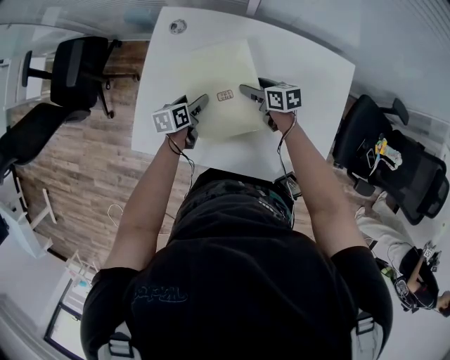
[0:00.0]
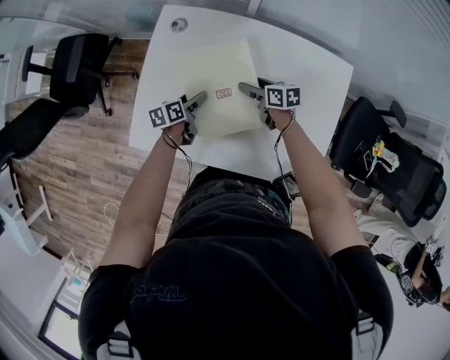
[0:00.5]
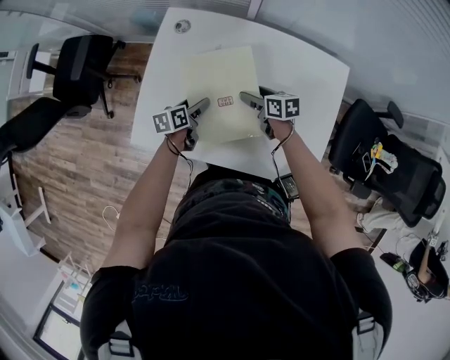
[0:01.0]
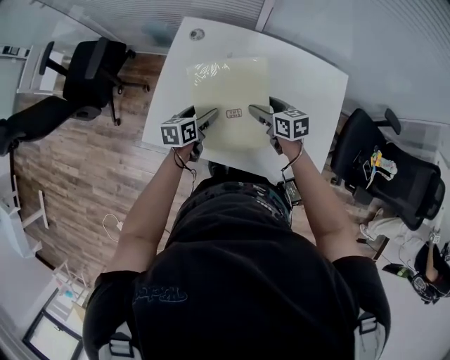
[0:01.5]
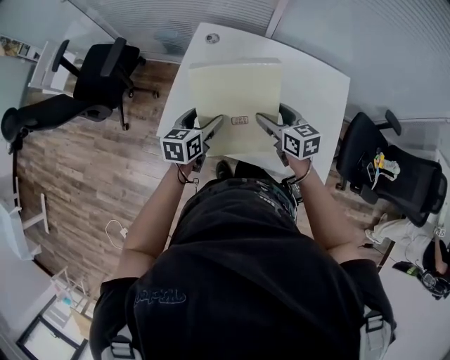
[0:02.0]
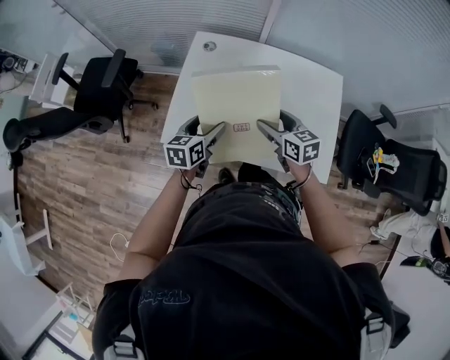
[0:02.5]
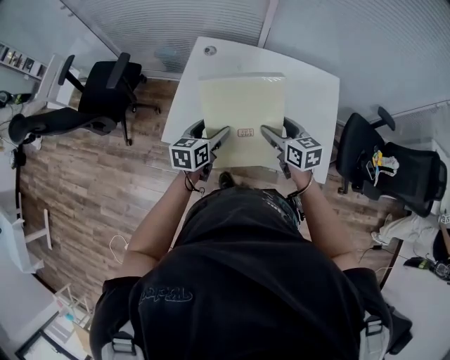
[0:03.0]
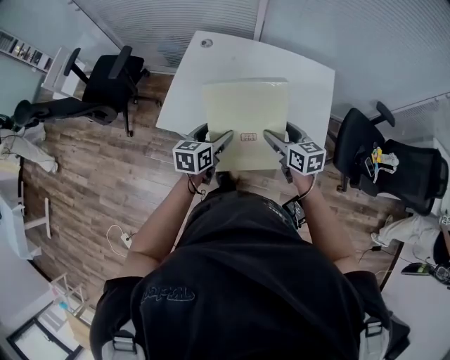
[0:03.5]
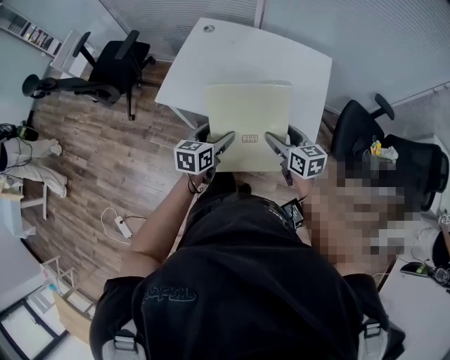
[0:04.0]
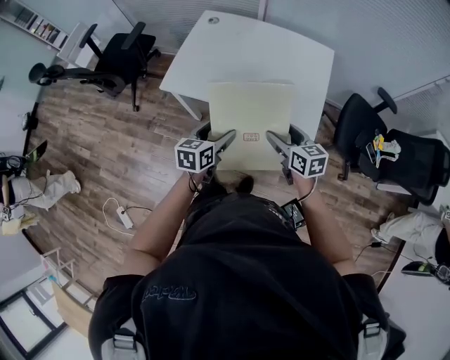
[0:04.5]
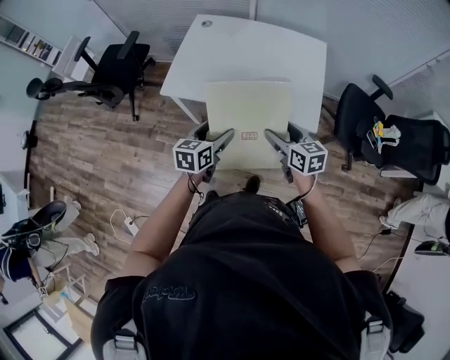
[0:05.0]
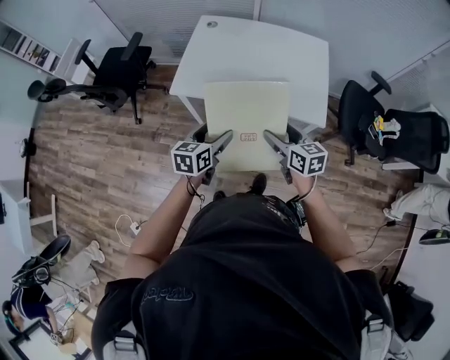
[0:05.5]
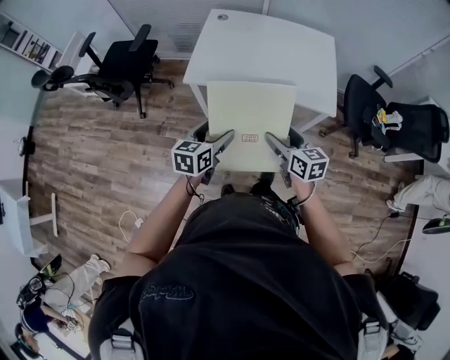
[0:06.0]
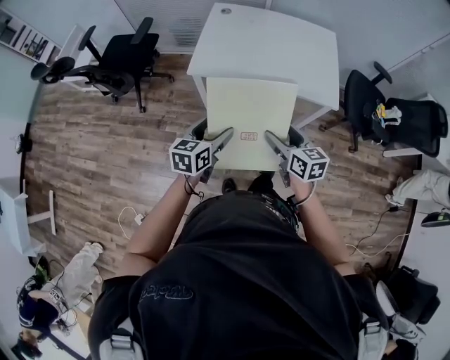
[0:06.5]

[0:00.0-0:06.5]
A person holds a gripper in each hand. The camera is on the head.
0.0 to 2.0 s: The two grippers go some 20 cm upward and backward. The left gripper swivels some 20 degrees. The right gripper swivels roughly 30 degrees.
2.0 to 4.5 s: The grippers both shift backward by roughly 30 cm.
4.5 to 6.5 s: Both grippers move to the left and backward, roughly 25 cm.

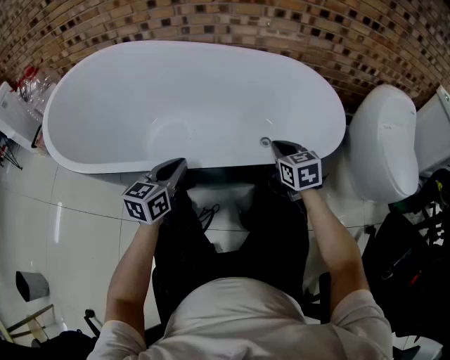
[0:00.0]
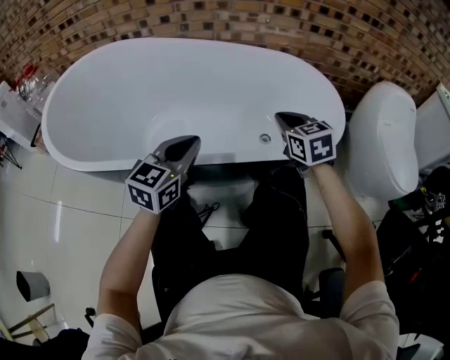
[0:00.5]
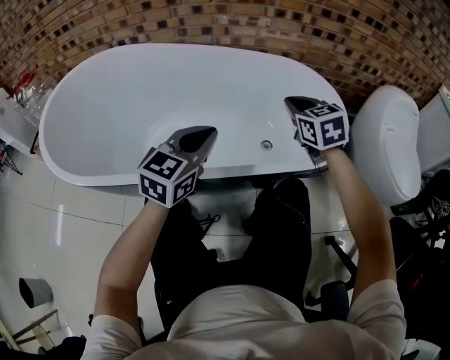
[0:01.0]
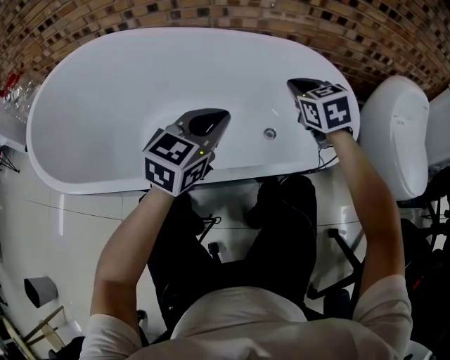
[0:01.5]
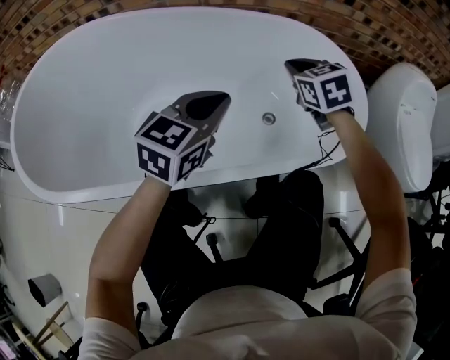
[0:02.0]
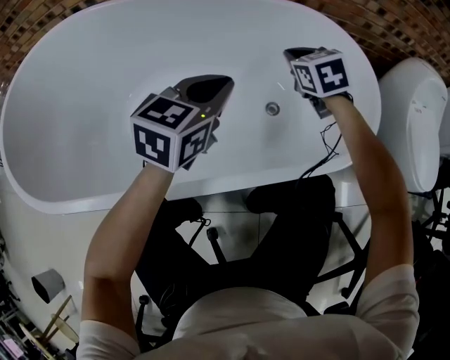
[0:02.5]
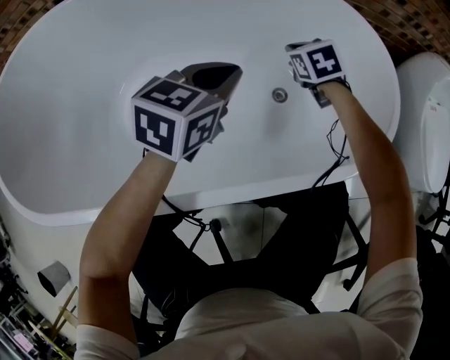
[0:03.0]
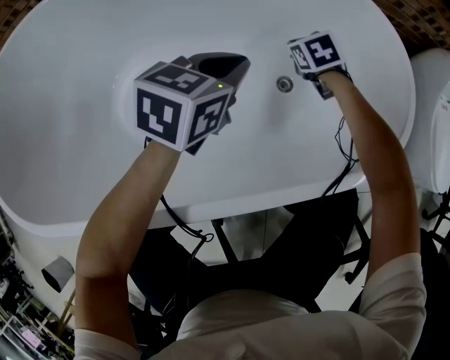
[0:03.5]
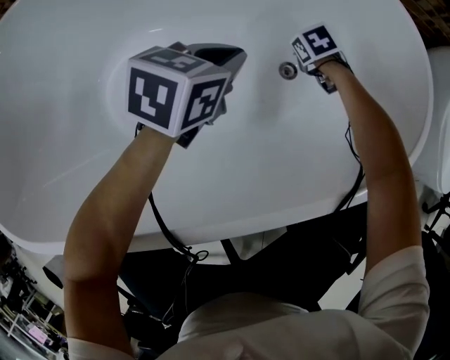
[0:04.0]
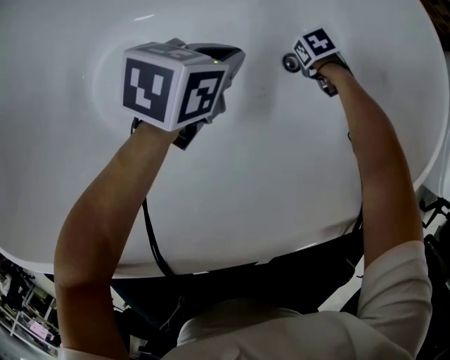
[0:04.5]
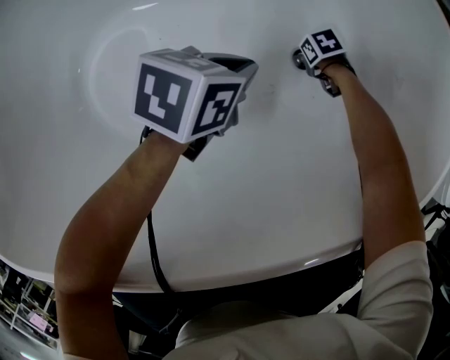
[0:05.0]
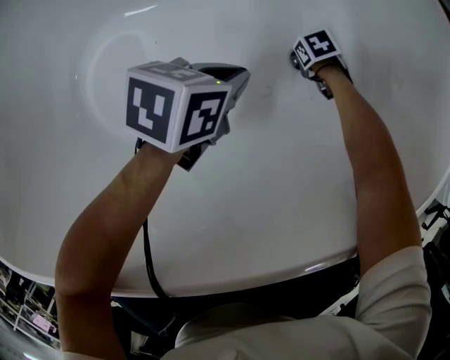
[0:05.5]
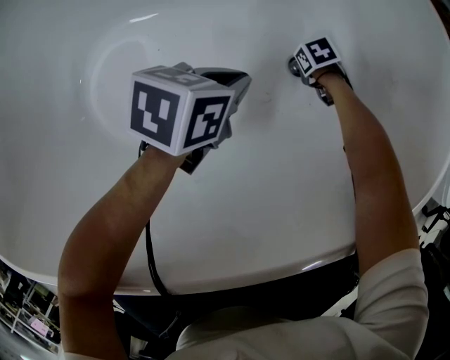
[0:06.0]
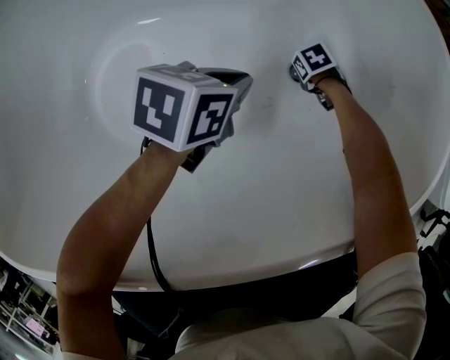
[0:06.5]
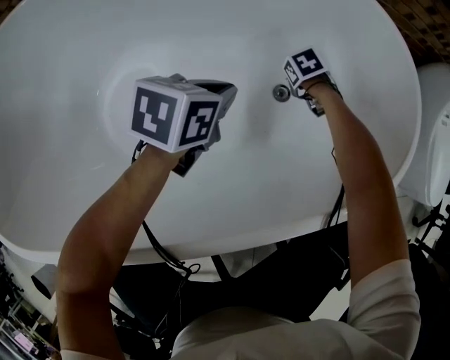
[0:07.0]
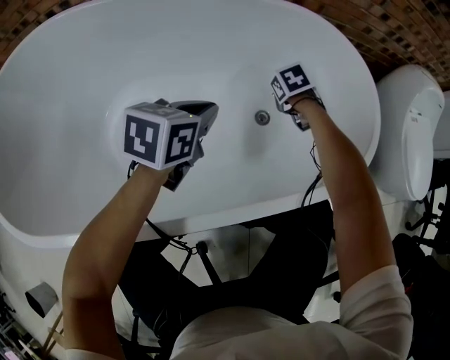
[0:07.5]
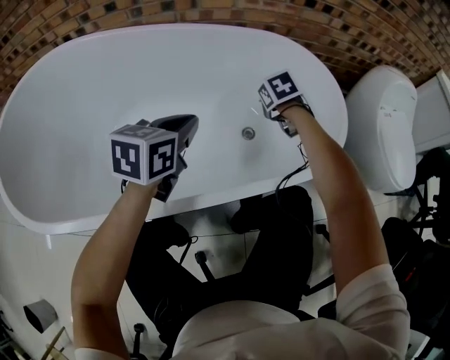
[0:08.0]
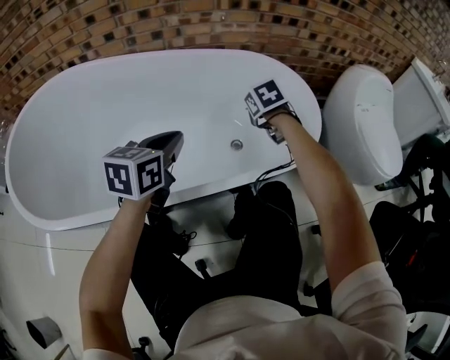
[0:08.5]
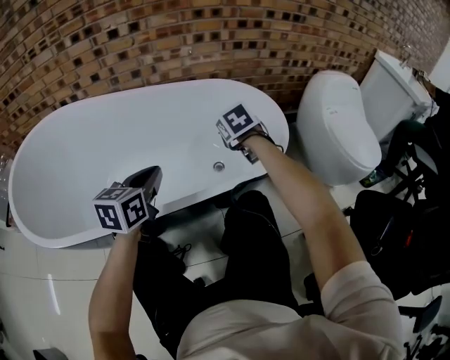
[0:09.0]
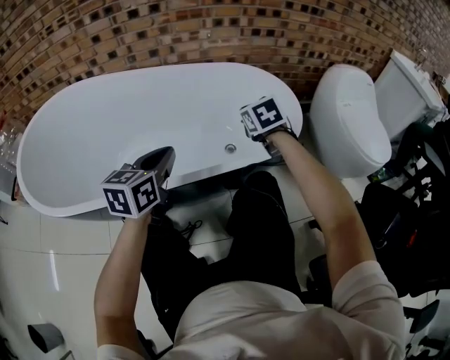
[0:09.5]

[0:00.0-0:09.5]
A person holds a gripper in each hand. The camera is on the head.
0.0 to 2.0 s: The right gripper moves forward, about 20 cm. Meanwhile the left gripper is displaced forward and to the right by approximately 20 cm, and swivels roughly 20 degrees.
2.0 to 4.0 s: The left gripper is displaced downward by approximately 20 cm, and swivels approximately 30 degrees, while the right gripper goes roughly 35 cm downward, and tilts its fingers some 40 degrees downward.
4.0 to 5.5 s: Both grippers travel together downward, about 10 cm.
5.5 to 7.5 s: Both grippers move upward, approximately 20 cm.
7.5 to 9.5 s: The left gripper changes place by roughly 25 cm, and swivels approximately 20 degrees. The right gripper moves upward, about 30 cm, and tips its fingers upward by some 30 degrees.

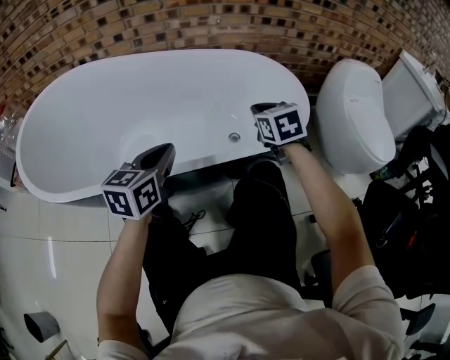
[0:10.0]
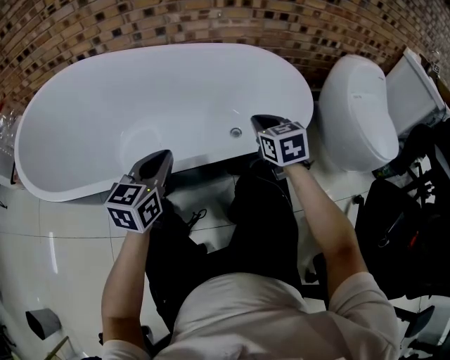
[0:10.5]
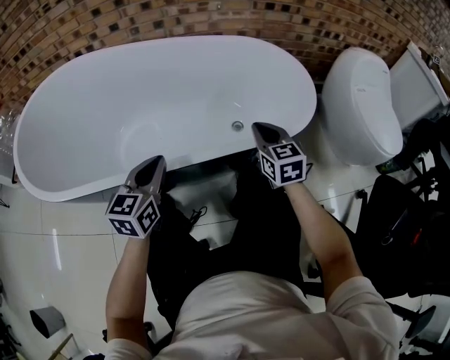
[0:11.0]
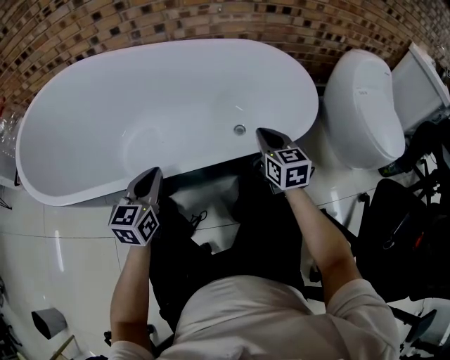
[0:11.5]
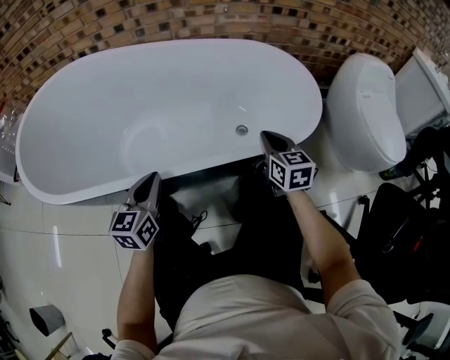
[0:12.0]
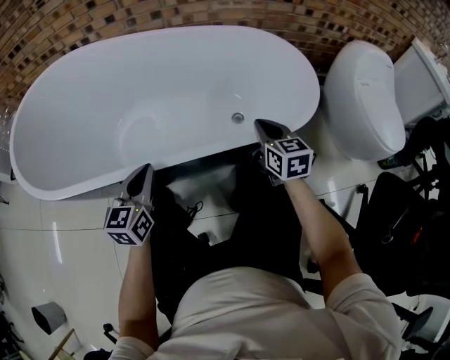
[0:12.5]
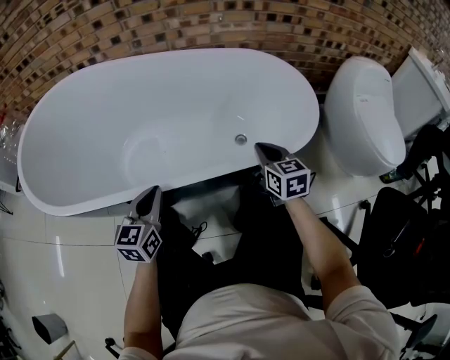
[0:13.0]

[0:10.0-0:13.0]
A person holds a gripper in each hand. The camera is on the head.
10.0 to 11.5 s: The left gripper goes approximately 10 cm downward and to the left, while the right gripper travels downward and backward by roughly 10 cm.
11.5 to 13.0 s: The grippers stay close to where they were, moving slightly.

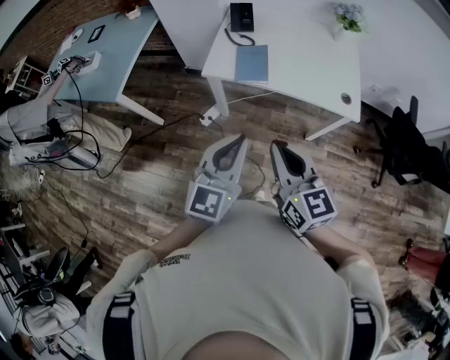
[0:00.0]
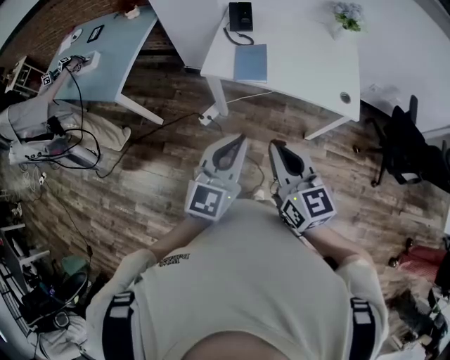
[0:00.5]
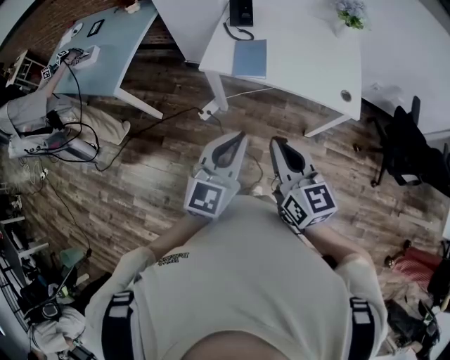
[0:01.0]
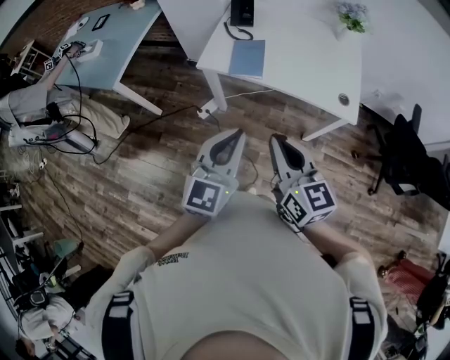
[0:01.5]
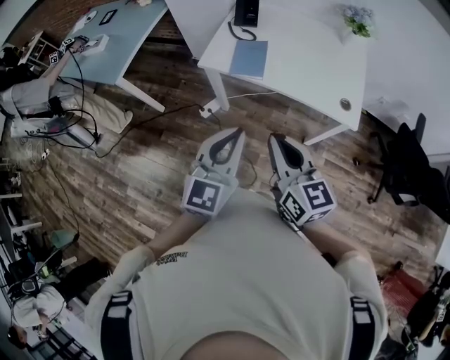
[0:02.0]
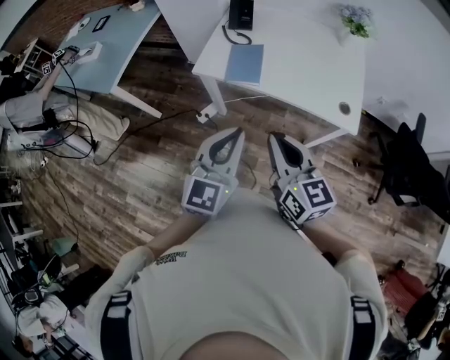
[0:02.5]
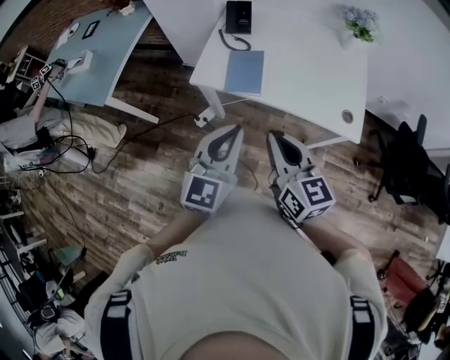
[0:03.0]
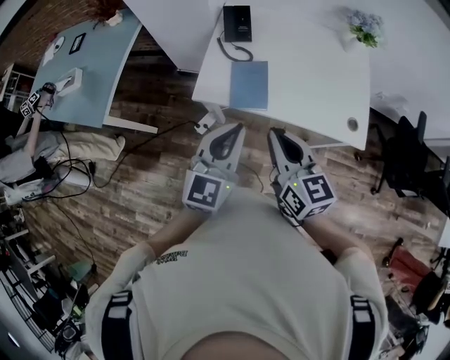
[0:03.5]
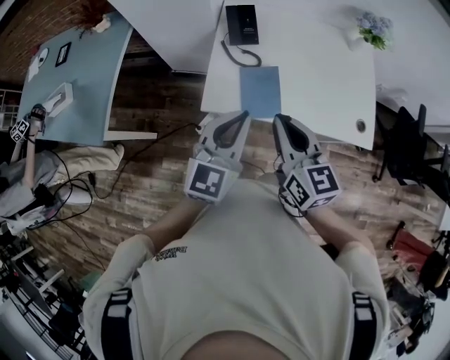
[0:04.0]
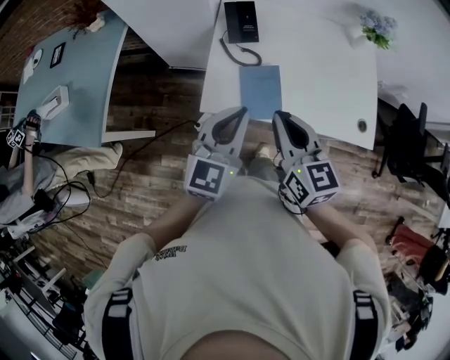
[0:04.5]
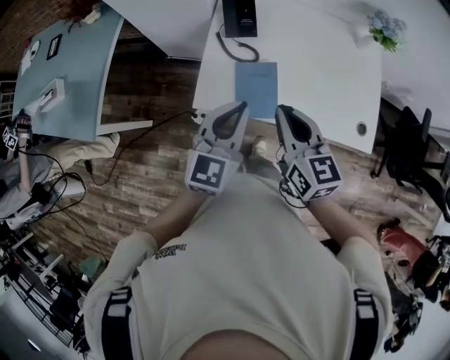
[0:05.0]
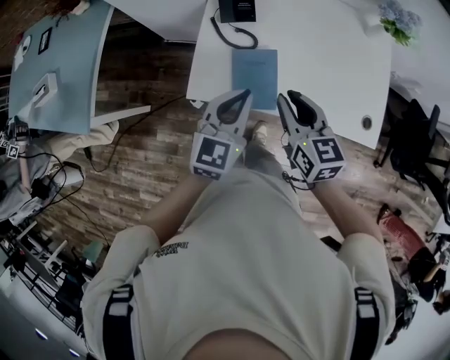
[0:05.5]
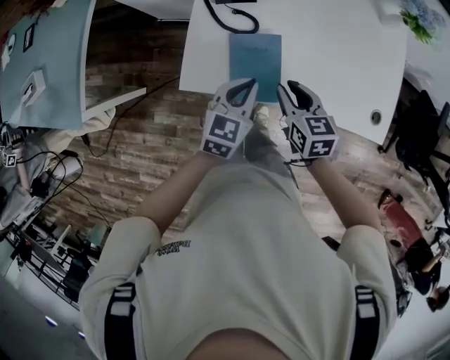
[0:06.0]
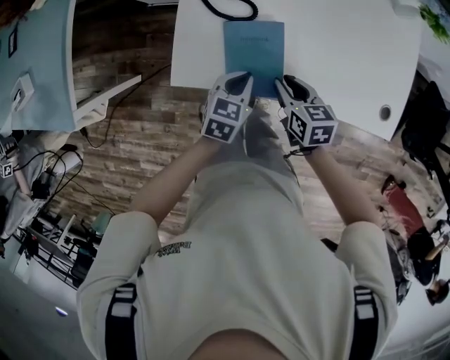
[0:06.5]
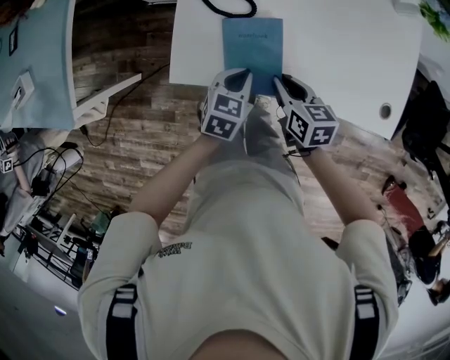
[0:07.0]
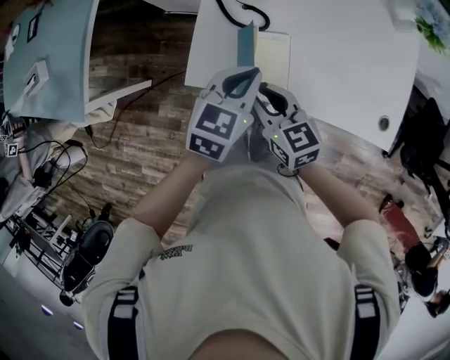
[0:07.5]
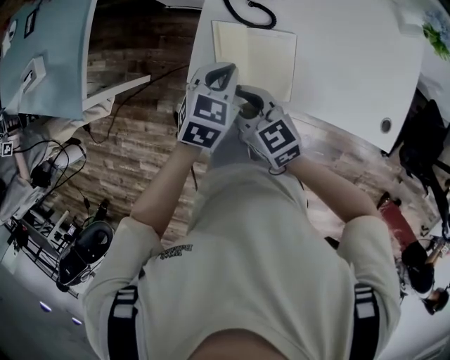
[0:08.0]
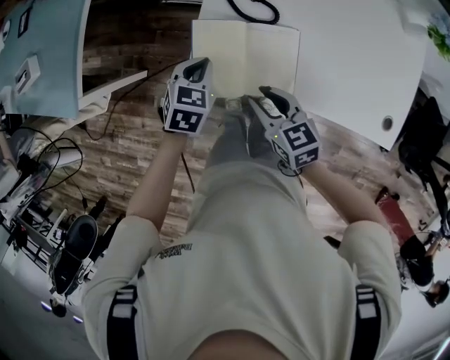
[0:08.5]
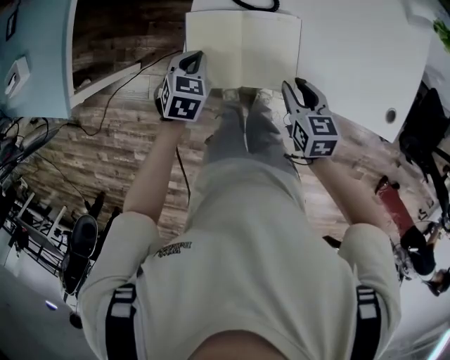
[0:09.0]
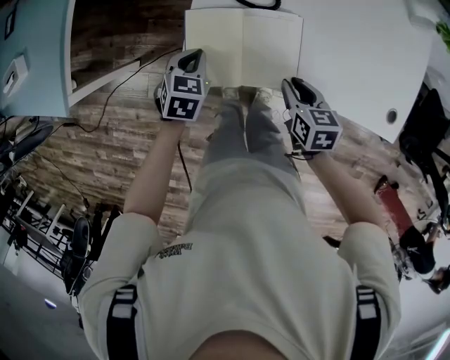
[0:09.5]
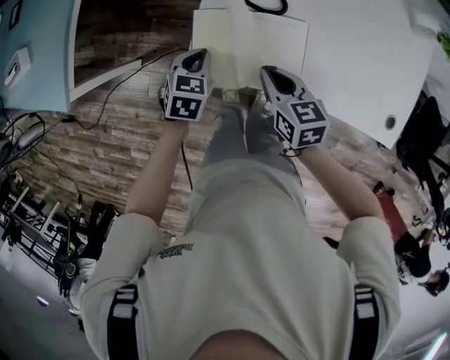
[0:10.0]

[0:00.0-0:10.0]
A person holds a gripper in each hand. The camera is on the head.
0.0 to 2.0 s: Both grippers move to the right, roughly 5 cm.
2.0 to 4.0 s: The grippers both shift forward by about 25 cm.
4.0 to 6.0 s: Both grippers travel together downward and forward, roughly 25 cm. The left gripper rotates approximately 30 degrees, while the right gripper changes its angle by roughly 30 degrees, and opens.
6.0 to 8.0 s: The right gripper shifts roughly 20 cm to the left, and rotates some 30 degrees; the left gripper moves up and down over approximately 15 cm, changing direction 2 times.
8.0 to 10.0 s: The right gripper goes some 10 cm to the right and downward, turns by roughly 20 degrees, and closes up. Meanwhile the left gripper moves downward and to the left, approximately 15 cm.
